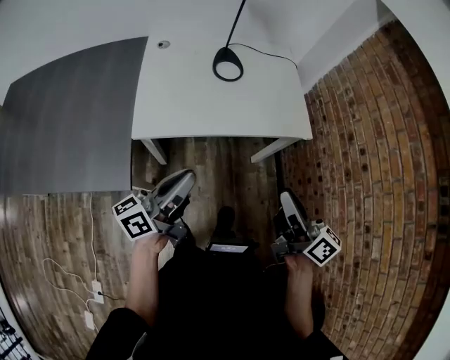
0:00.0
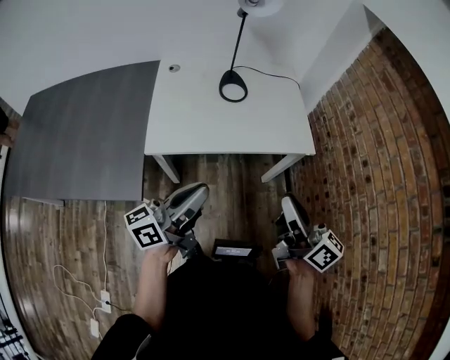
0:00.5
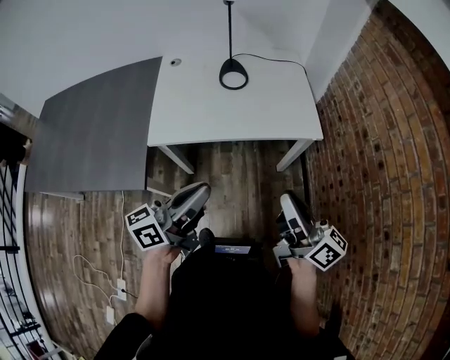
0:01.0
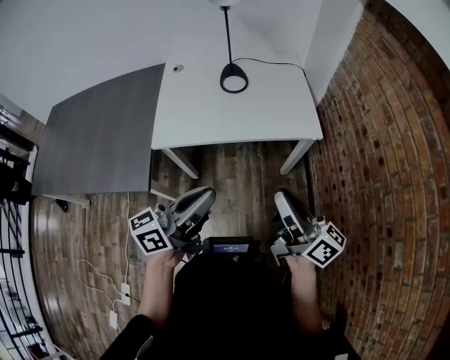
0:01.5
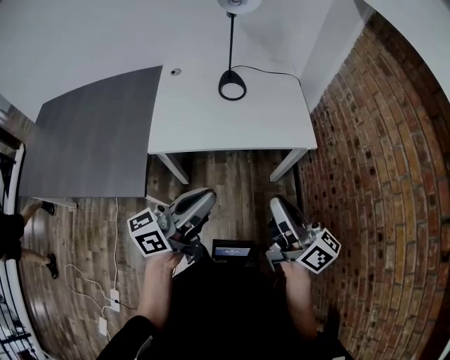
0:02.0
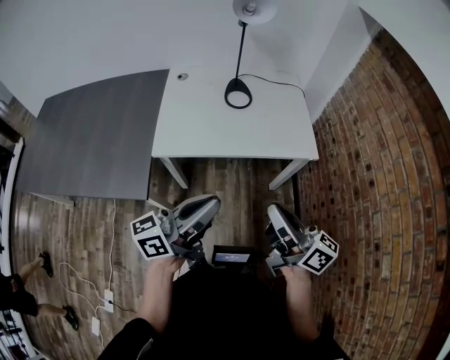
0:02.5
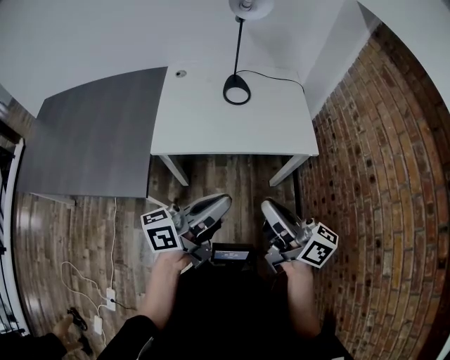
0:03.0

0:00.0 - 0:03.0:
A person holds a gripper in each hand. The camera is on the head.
0:00.0 - 0:01.5: The right gripper moves about 5 cm. The left gripper goes roughly 15 cm to the right, upward and backward.
0:01.5 - 0:03.0: The right gripper is displaced to the left by roughly 5 cm.

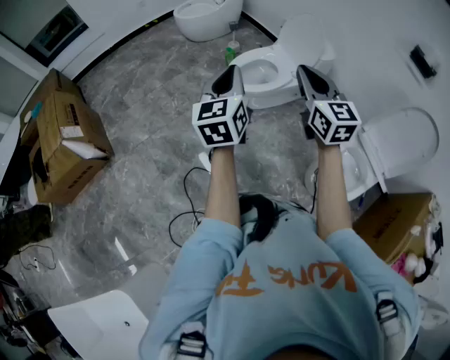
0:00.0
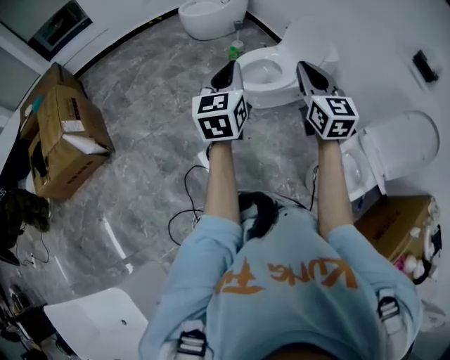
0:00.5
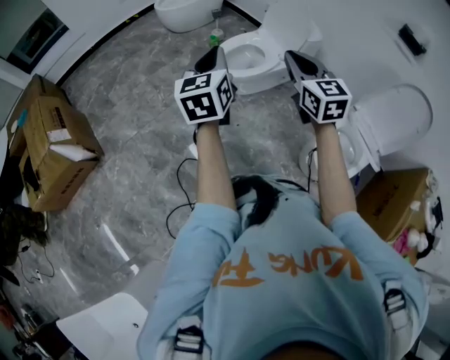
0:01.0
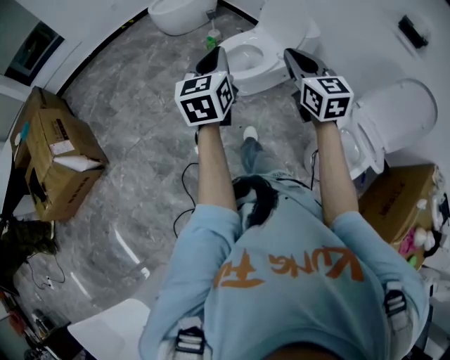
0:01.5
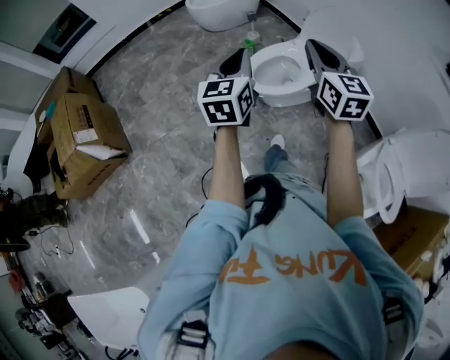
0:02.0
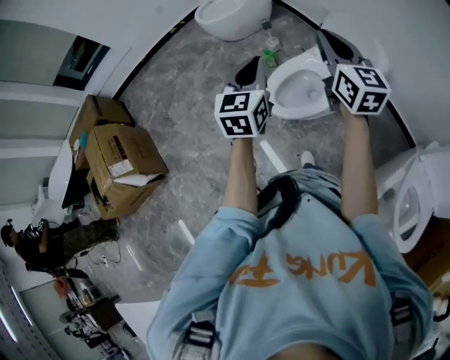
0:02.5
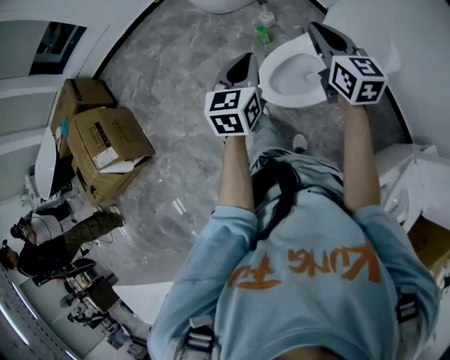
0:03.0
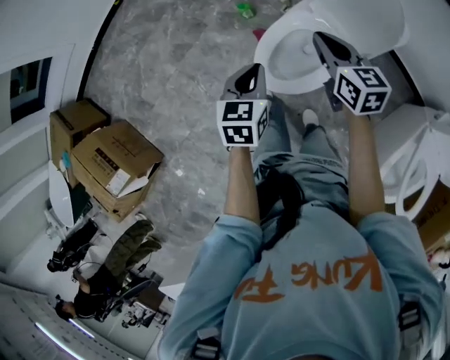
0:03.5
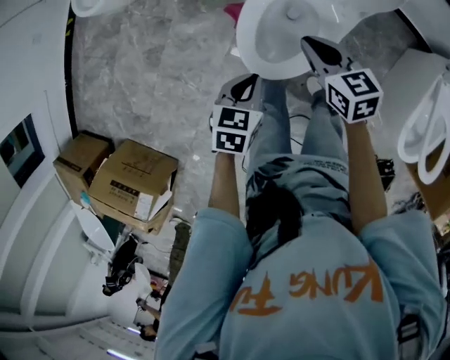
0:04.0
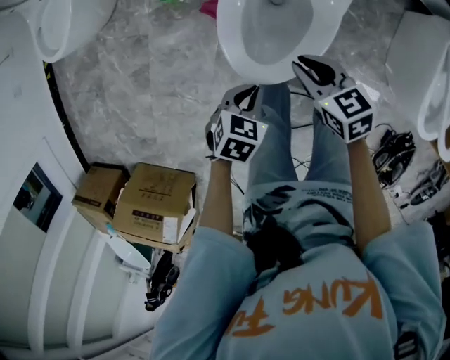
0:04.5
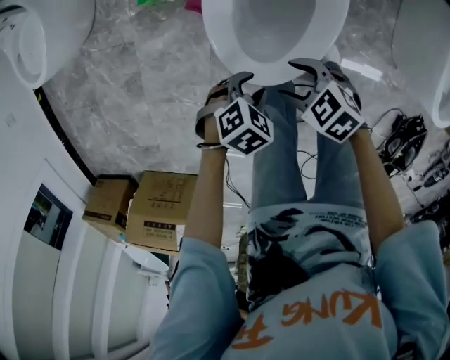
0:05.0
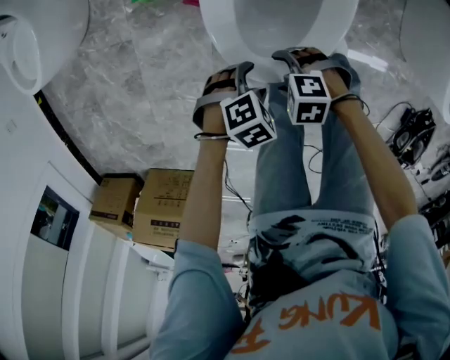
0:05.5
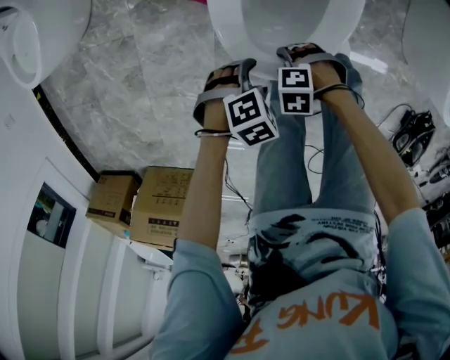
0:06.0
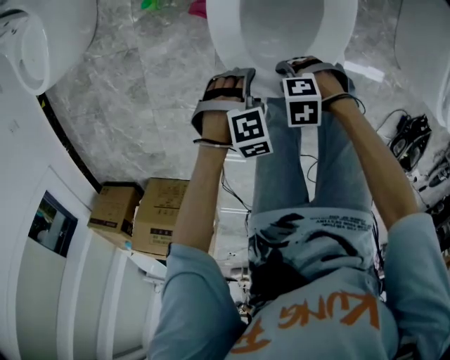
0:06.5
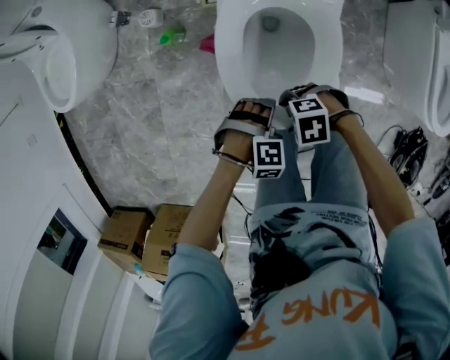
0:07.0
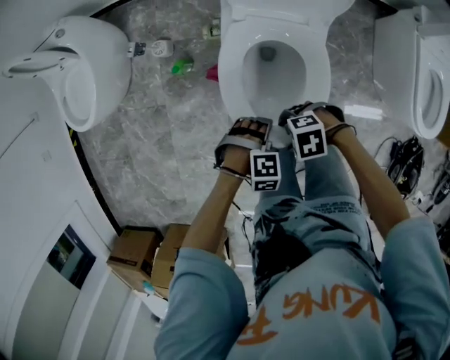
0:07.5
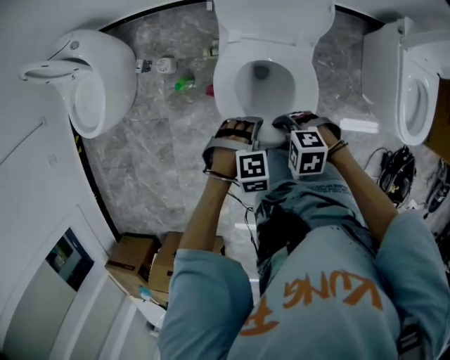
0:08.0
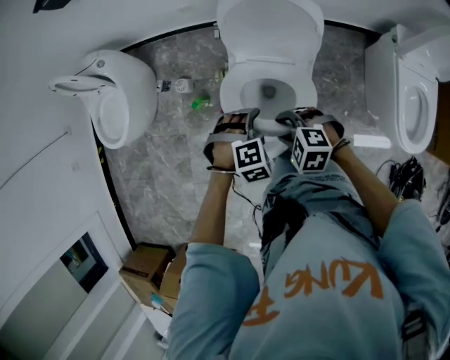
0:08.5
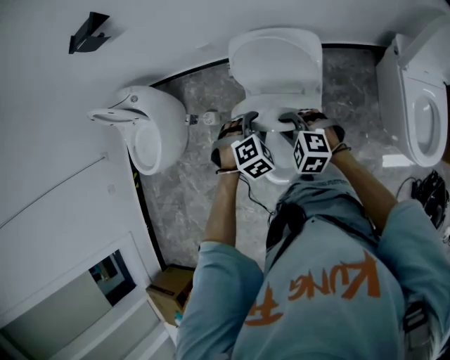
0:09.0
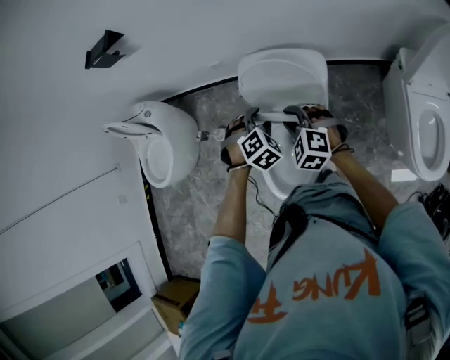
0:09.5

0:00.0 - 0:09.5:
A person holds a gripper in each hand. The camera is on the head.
0:00.0 - 0:02.0: Both grippers travel together forward, about 20 cm.
0:02.0 - 0:04.0: Both grippers travel together downward, some 35 cm. The left gripper tips its fingers downward by about 40 degrees. The right gripper points its fingers roughly 30 degrees further downward.
0:04.0 - 0:05.5: The two grippers go approximately 30 cm downward. The right gripper rotates roughly 60 degrees, and opens up. Meanwhile the left gripper twists about 60 degrees clockwise, seen from behind, and opens its fingers.
0:05.5 - 0:07.5: The grippers both shift upward by roughly 15 cm. The left gripper turns by some 40 degrees.
0:07.5 - 0:09.5: The right gripper moves about 40 cm, swivels approximately 70 degrees, and closes. Meanwhile the left gripper moves some 40 cm, and swivels some 40 degrees.

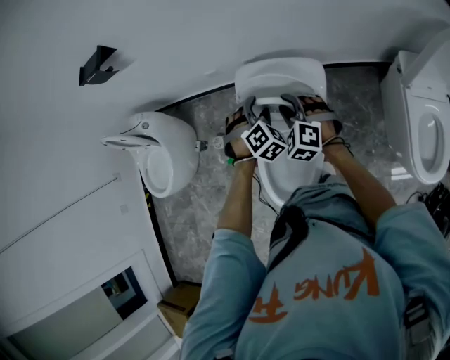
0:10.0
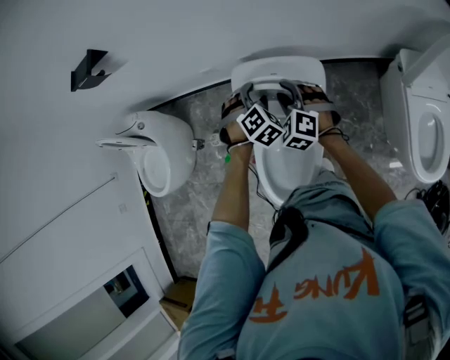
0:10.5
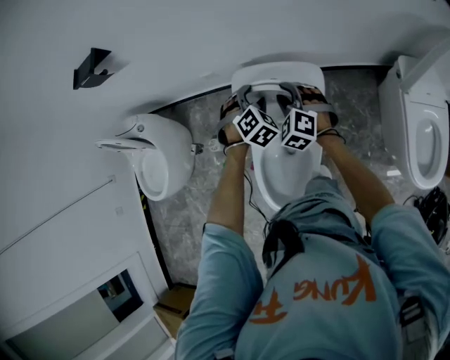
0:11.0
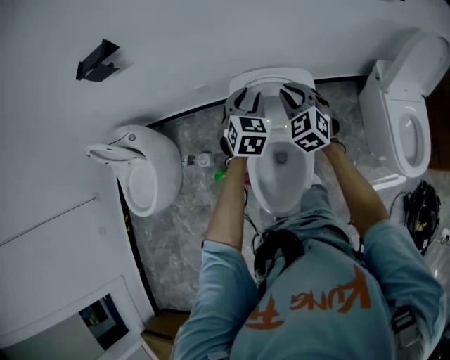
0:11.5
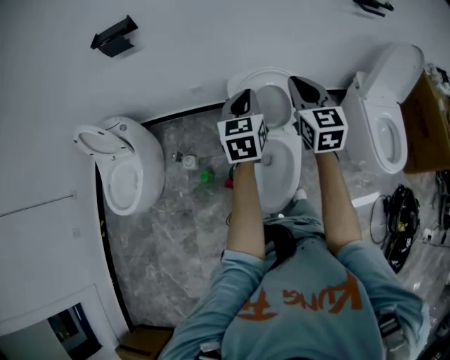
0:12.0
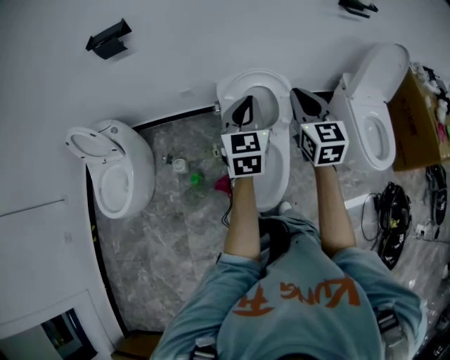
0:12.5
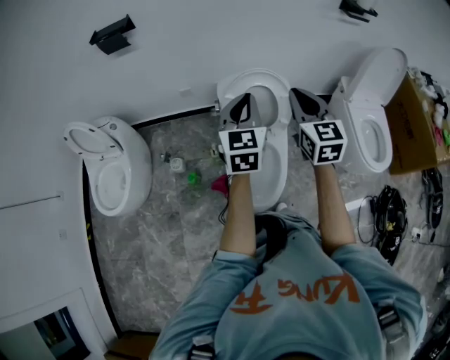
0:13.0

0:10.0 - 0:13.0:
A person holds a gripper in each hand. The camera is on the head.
0:10.0 - 0:11.5: The two grippers go roughly 10 cm upward. The right gripper swivels some 30 degrees; the left gripper swivels about 40 degrees.
0:11.5 - 0:13.0: Both grippers travel together backward and upward, some 25 cm. The left gripper changes its angle by roughly 30 degrees, and closes up; the right gripper rotates roughly 30 degrees.

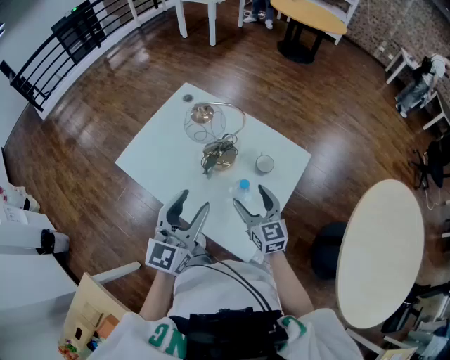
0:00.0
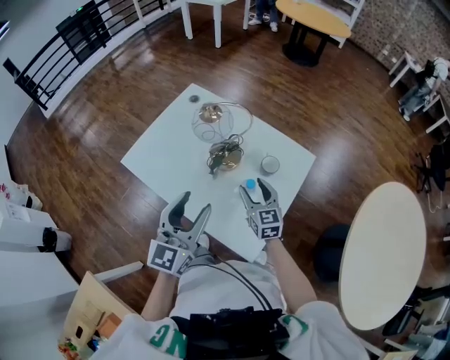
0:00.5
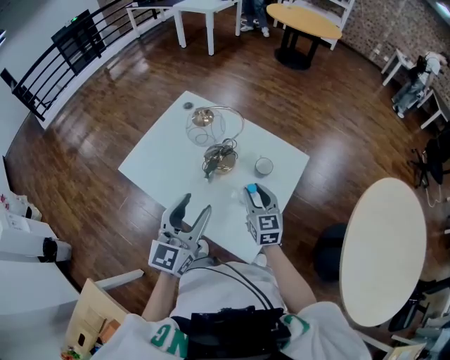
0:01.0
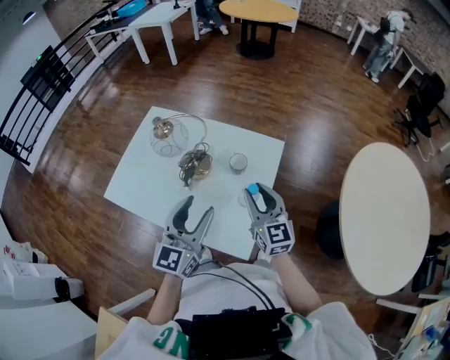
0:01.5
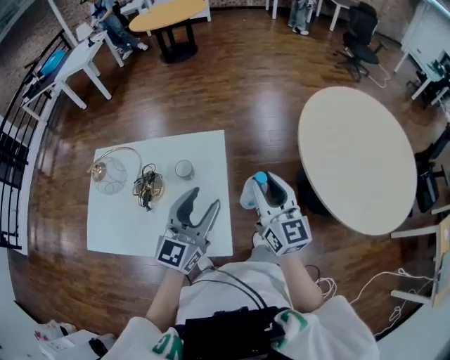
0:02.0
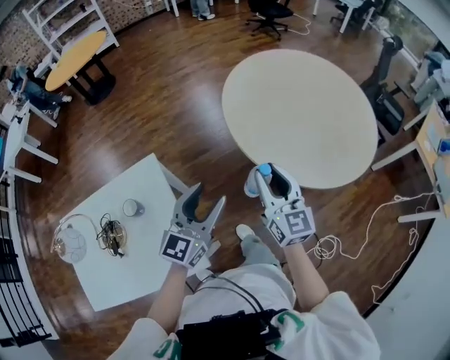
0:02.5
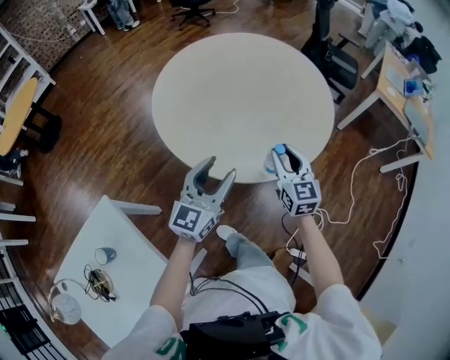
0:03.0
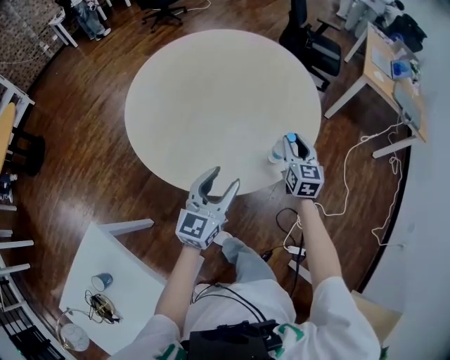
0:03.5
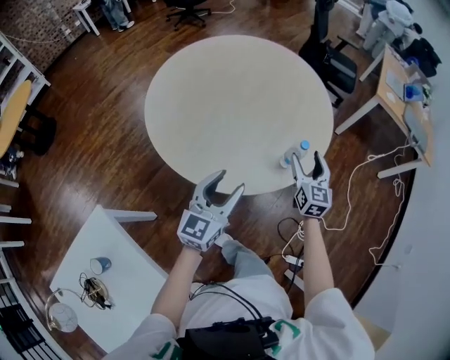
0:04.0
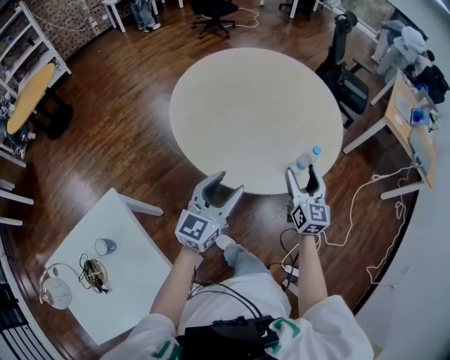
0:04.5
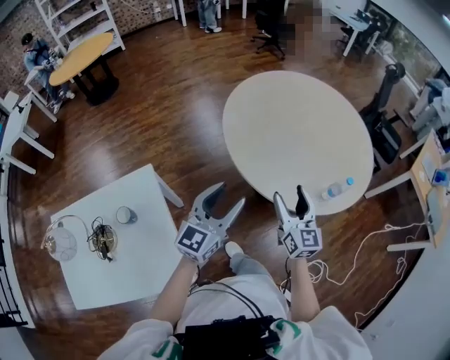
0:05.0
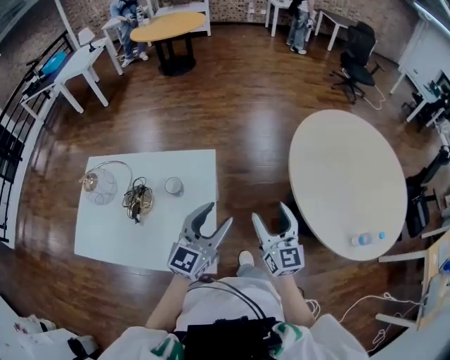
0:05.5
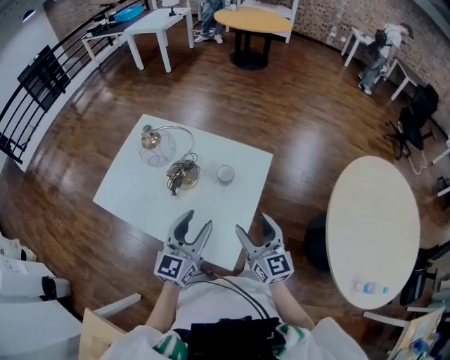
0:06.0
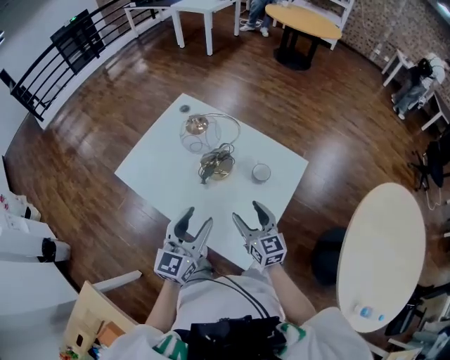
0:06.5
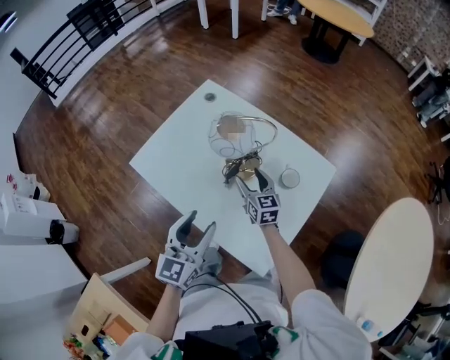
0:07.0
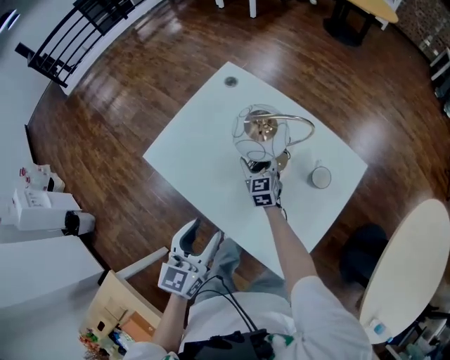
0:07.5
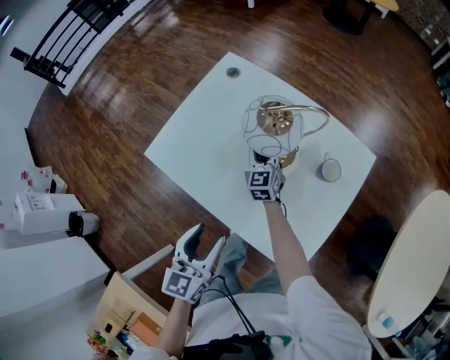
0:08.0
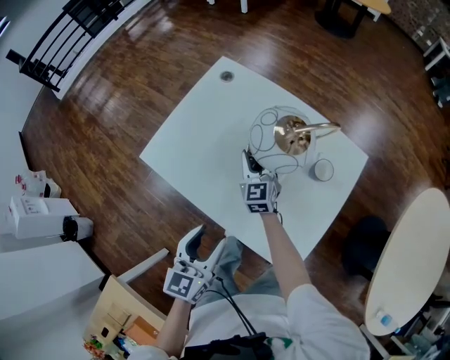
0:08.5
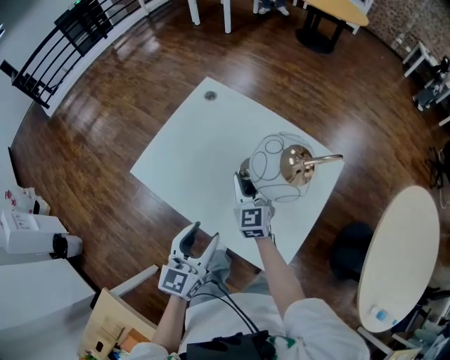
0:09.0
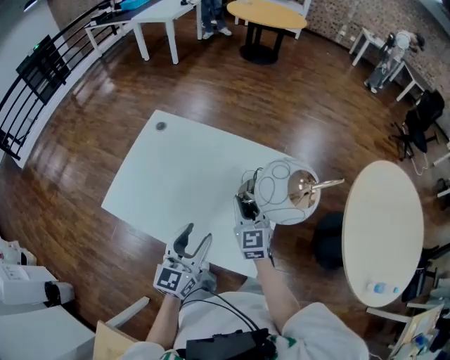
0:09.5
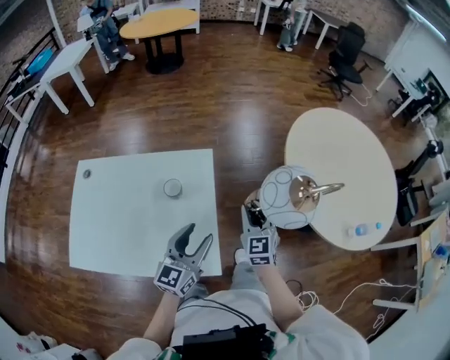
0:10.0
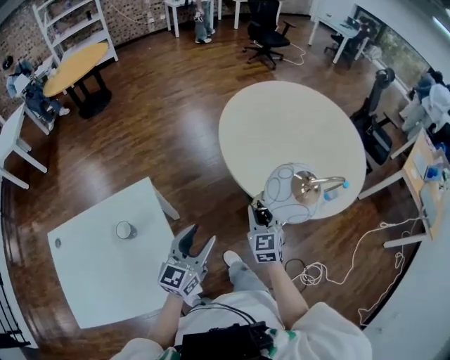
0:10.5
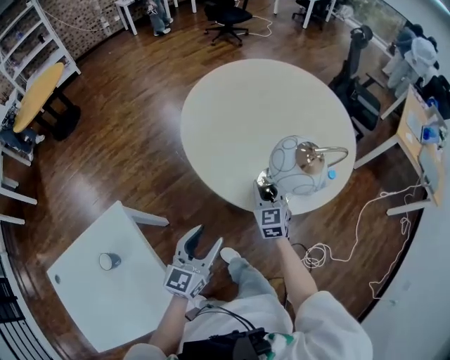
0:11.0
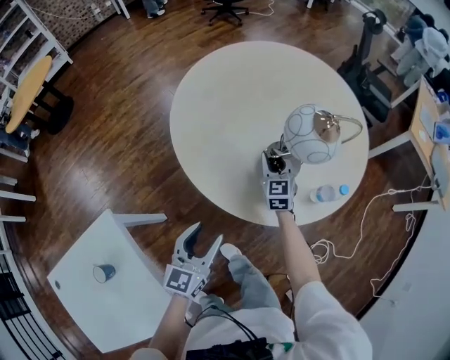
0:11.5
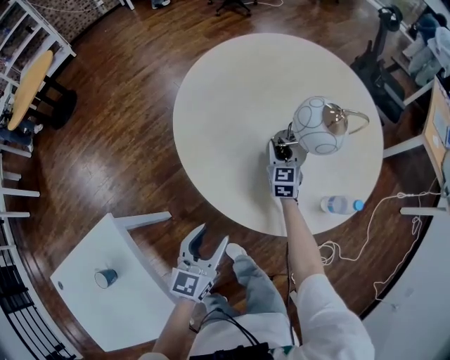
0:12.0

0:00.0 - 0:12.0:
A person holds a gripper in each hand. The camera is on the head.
0:00.0 - 0:02.0: The left gripper changes place by some 25 cm, and swivels some 40 degrees; the right gripper changes place by roughly 30 cm, rotates some 50 degrees, and closes its fingers.
0:02.0 - 0:04.0: Both grippers are carried about 60 cm. The left gripper rotates some 50 degrees; the right gripper rotates about 70 degrees, and opens up.
0:04.0 - 0:06.0: The two grippers travel together, approximately 70 cm. The left gripper changes its angle by about 80 degrees. The right gripper swivels roughly 90 degrees.
0:06.0 - 0:08.0: The right gripper is displaced forward, to the left and downward by approximately 50 cm, turns by about 30 degrees, and closes its fingers; the left gripper is displaced to the left and downward by approximately 25 cm, and swivels about 30 degrees.
0:08.0 - 0:10.0: The right gripper moves roughly 50 cm, and changes its angle by some 40 degrees, while the left gripper changes place by roughly 35 cm, and swivels approximately 50 degrees.
0:10.0 - 0:12.0: Both grippers are carried about 60 cm. The left gripper rotates some 30 degrees. The right gripper changes its angle by roughly 40 degrees.
